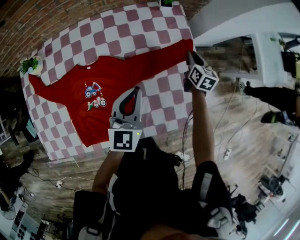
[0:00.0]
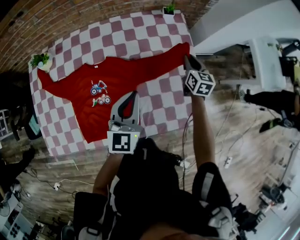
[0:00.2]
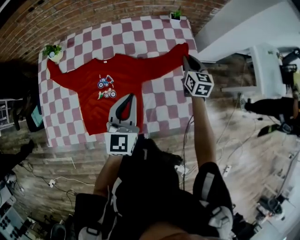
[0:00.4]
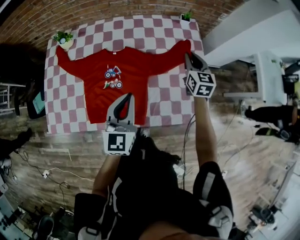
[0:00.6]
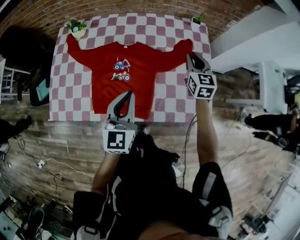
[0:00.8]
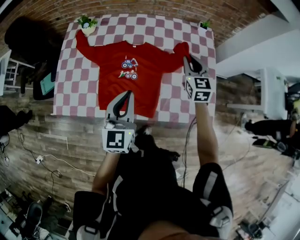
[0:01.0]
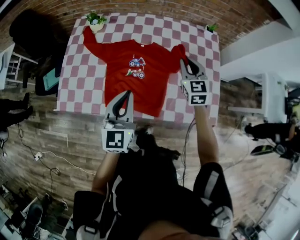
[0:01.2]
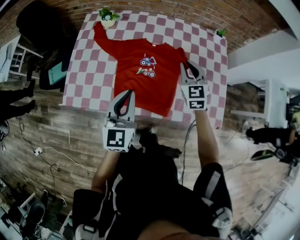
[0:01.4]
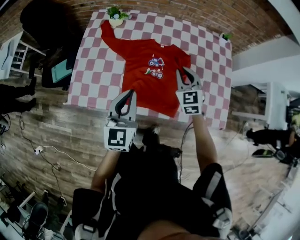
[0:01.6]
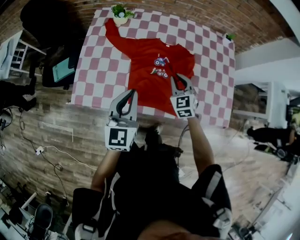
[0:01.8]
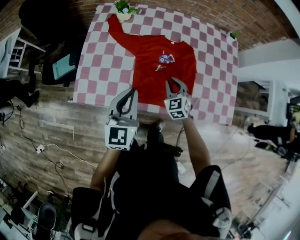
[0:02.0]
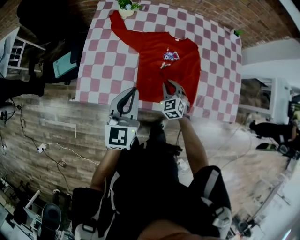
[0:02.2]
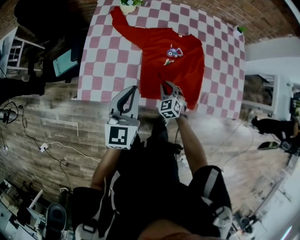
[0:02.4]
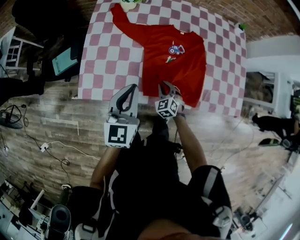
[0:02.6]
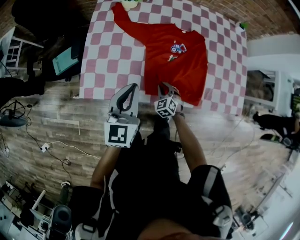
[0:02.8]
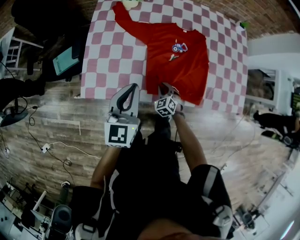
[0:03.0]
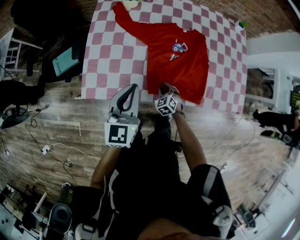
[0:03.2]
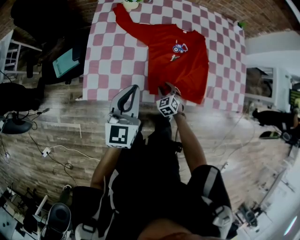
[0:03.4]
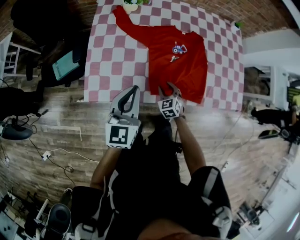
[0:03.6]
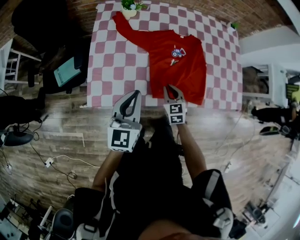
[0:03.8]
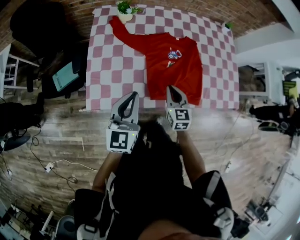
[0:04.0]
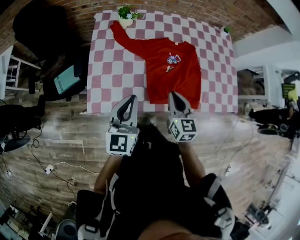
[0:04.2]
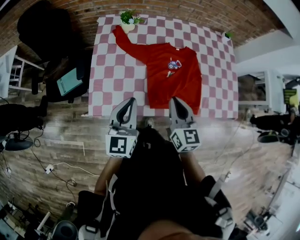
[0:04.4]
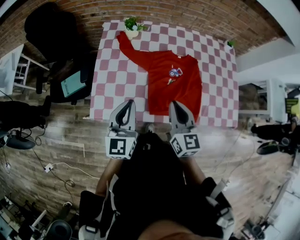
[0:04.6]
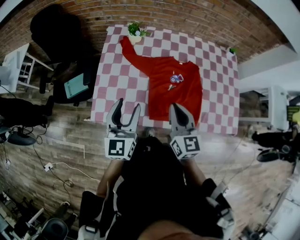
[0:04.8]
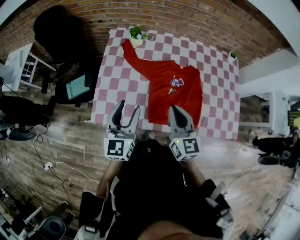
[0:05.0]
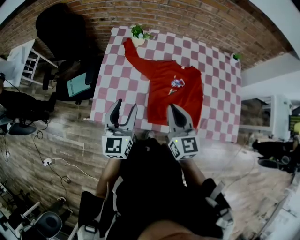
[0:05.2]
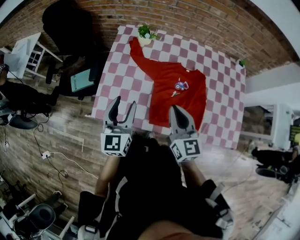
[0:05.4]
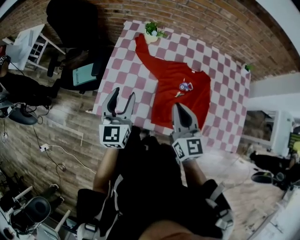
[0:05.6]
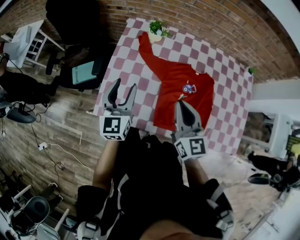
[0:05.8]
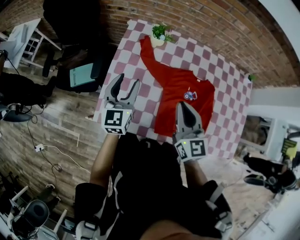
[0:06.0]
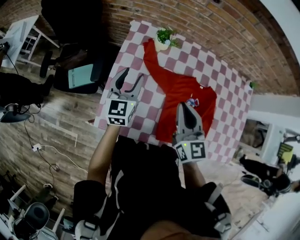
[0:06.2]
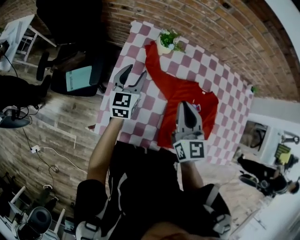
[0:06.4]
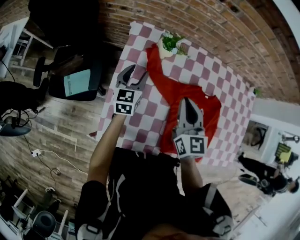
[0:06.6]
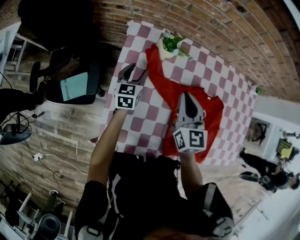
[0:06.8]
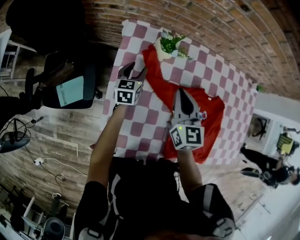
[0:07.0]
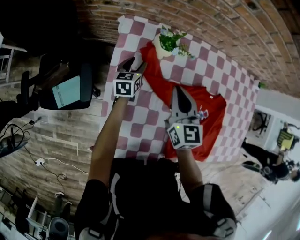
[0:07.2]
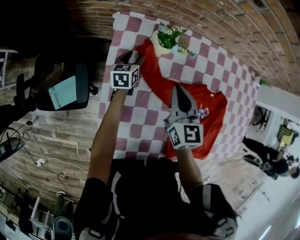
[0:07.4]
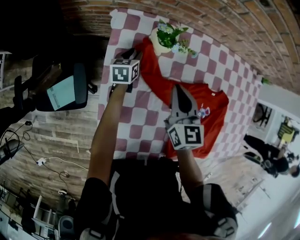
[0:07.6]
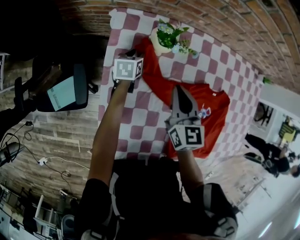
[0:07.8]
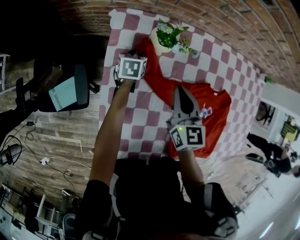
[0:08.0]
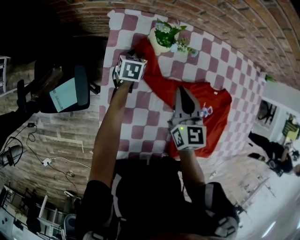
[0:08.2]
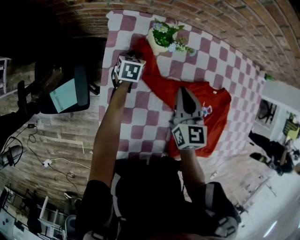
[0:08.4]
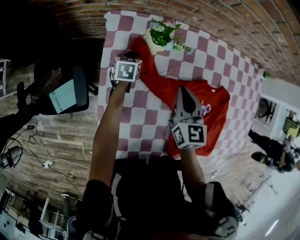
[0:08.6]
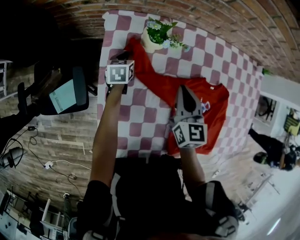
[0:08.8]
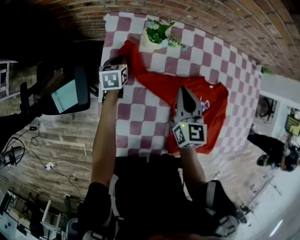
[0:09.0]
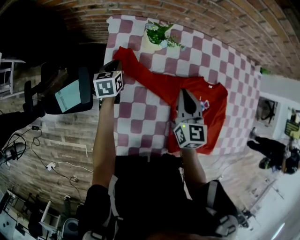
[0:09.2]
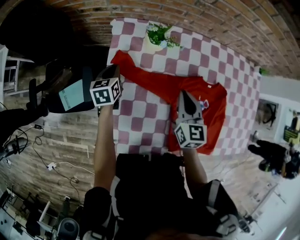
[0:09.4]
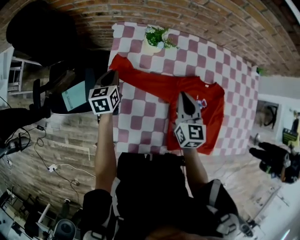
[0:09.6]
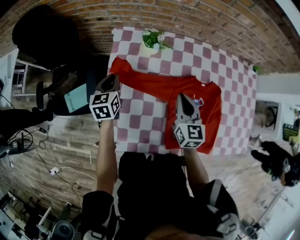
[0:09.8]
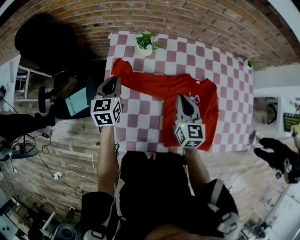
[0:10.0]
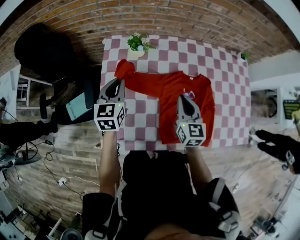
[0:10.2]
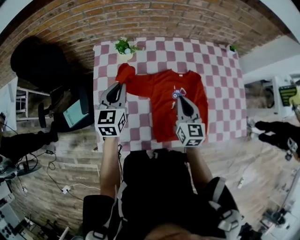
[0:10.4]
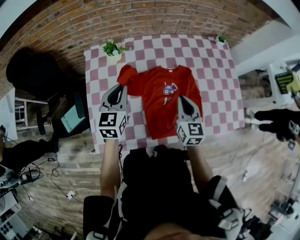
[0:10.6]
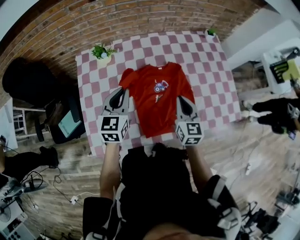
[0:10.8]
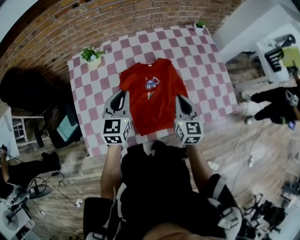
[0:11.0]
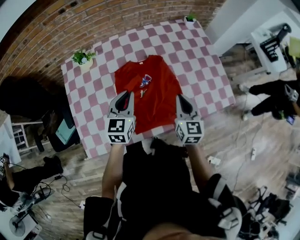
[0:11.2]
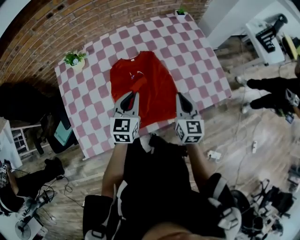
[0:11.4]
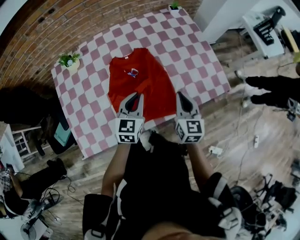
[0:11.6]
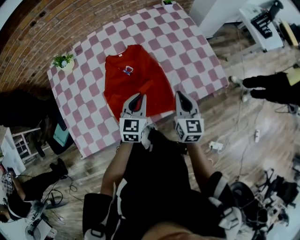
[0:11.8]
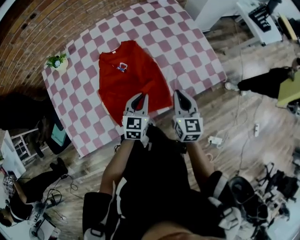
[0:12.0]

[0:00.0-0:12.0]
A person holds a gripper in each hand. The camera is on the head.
0:00.0 to 0:01.6: The pair of grippers is taken some 40 cm. The left gripper swivels some 20 degrees, while the right gripper rotates around the line of its fingers by roughly 50 degrees, counterclockwise from behind.
0:01.6 to 0:03.0: The left gripper goes approximately 15 cm to the left. The right gripper is displaced downward, to the left and backward by some 35 cm, and turns by about 30 degrees.
0:03.0 to 0:04.4: The left gripper changes place by some 5 cm, while the right gripper travels upward by some 35 cm, tilts its fingers roughly 30 degrees upward, and opens and closes again.
0:04.4 to 0:06.0: Both grippers travel together forward, about 20 cm. The left gripper opens its fingers.
0:06.0 to 0:07.6: The left gripper travels forward and downward by approximately 50 cm, swivels roughly 40 degrees, and closes its fingers, while the right gripper moves forward, downward and to the left, approximately 35 cm.
0:07.6 to 0:09.0: The left gripper ends up roughly 5 cm from where it was, and closes. Meanwhile the right gripper travels to the right by roughly 5 cm.
0:09.0 to 0:10.4: The right gripper moves to the right, backward and upward, approximately 25 cm. Meanwhile the left gripper shifts approximately 40 cm upward, backward and to the right, and swivels approximately 30 degrees.
0:10.4 to 0:12.0: The left gripper moves about 50 cm, and changes its angle by roughly 30 degrees. The right gripper ends up approximately 35 cm from where it was, and swivels roughly 20 degrees.

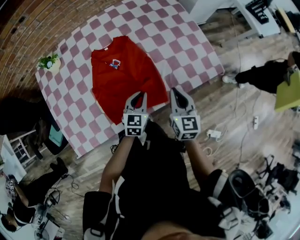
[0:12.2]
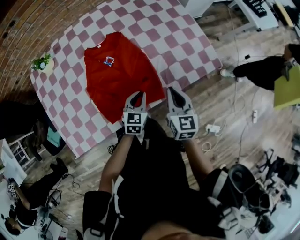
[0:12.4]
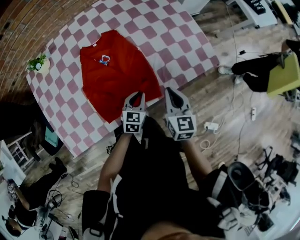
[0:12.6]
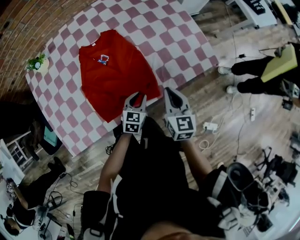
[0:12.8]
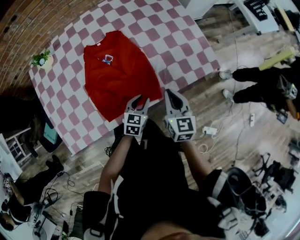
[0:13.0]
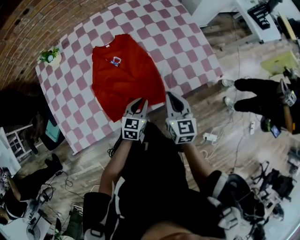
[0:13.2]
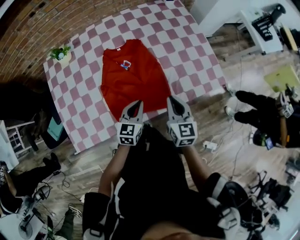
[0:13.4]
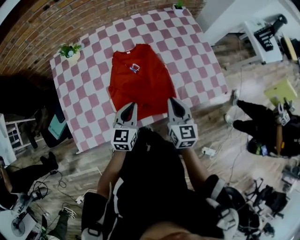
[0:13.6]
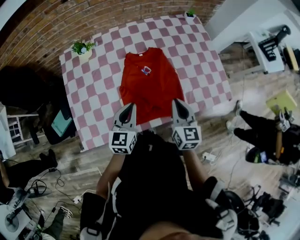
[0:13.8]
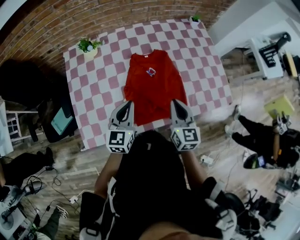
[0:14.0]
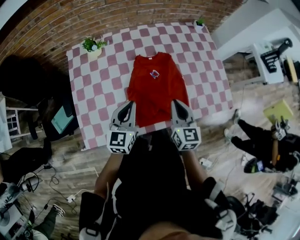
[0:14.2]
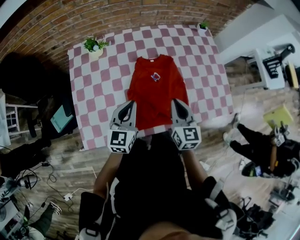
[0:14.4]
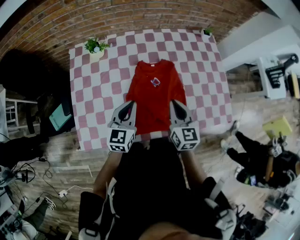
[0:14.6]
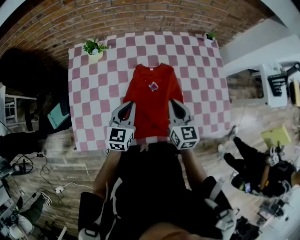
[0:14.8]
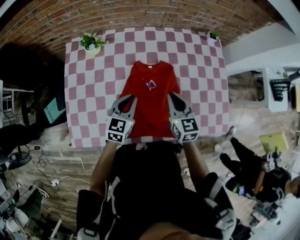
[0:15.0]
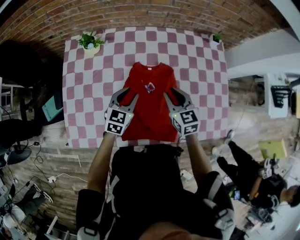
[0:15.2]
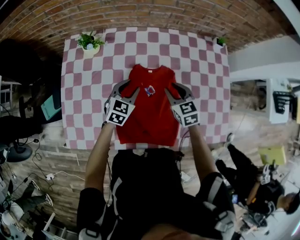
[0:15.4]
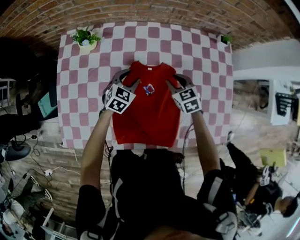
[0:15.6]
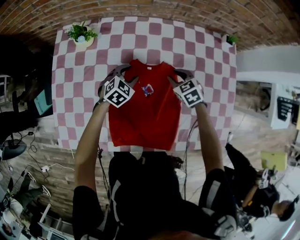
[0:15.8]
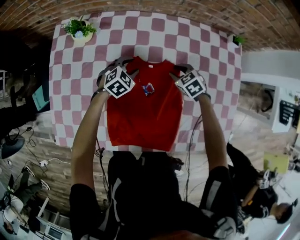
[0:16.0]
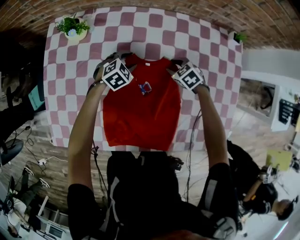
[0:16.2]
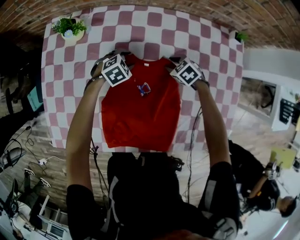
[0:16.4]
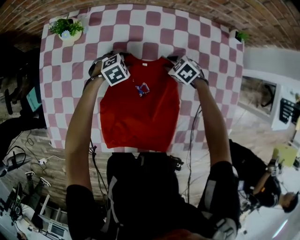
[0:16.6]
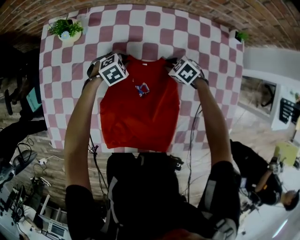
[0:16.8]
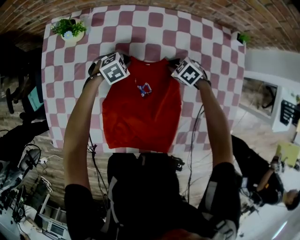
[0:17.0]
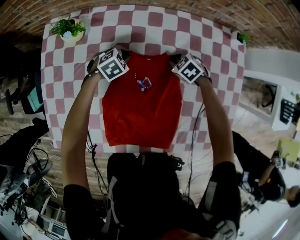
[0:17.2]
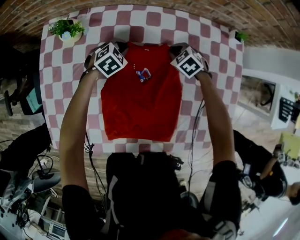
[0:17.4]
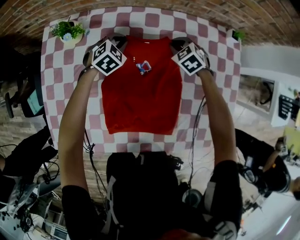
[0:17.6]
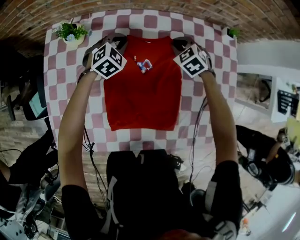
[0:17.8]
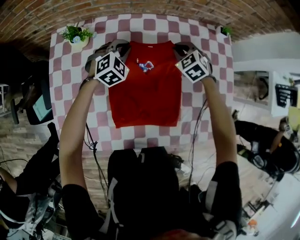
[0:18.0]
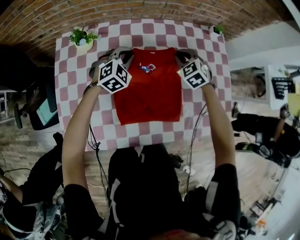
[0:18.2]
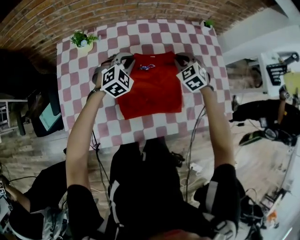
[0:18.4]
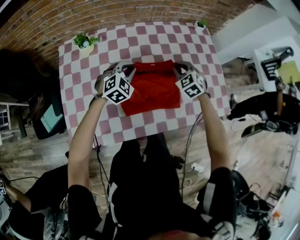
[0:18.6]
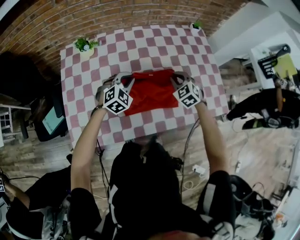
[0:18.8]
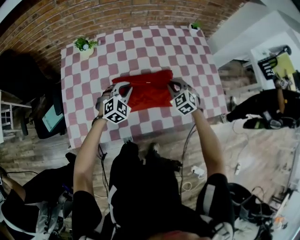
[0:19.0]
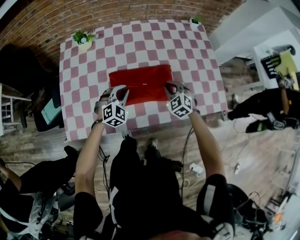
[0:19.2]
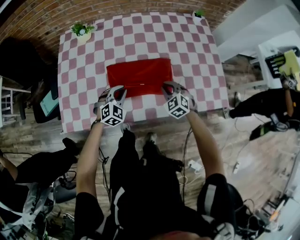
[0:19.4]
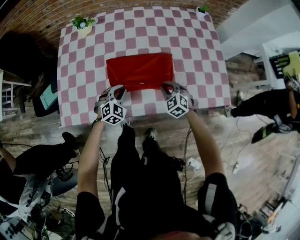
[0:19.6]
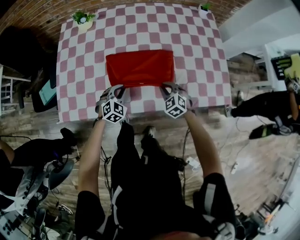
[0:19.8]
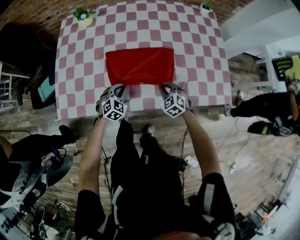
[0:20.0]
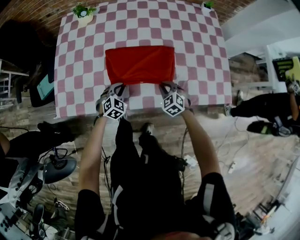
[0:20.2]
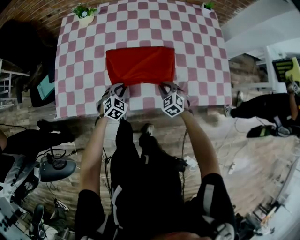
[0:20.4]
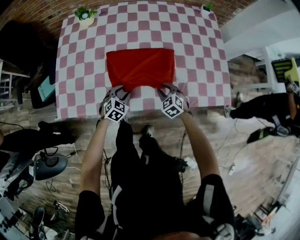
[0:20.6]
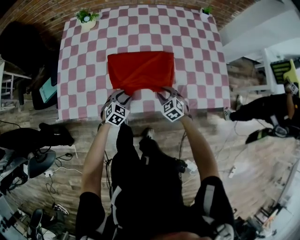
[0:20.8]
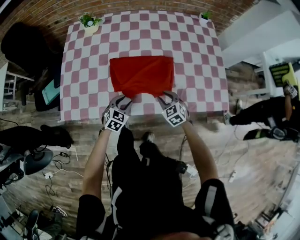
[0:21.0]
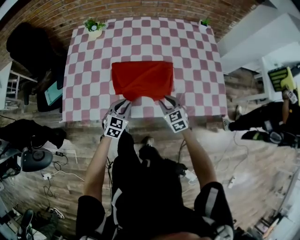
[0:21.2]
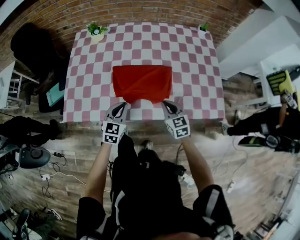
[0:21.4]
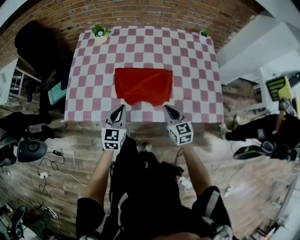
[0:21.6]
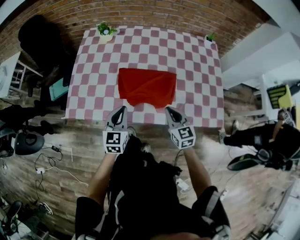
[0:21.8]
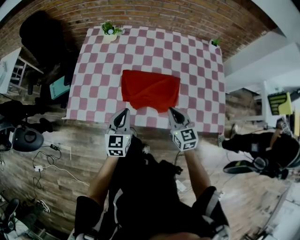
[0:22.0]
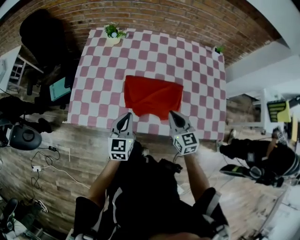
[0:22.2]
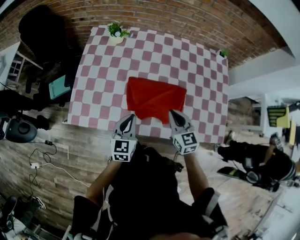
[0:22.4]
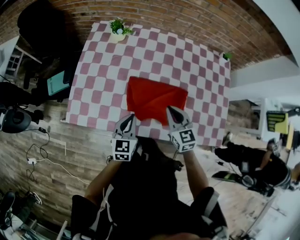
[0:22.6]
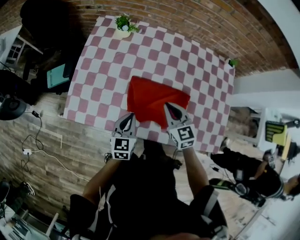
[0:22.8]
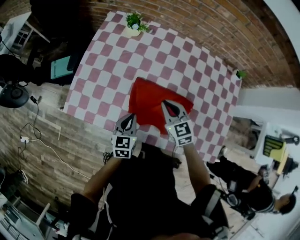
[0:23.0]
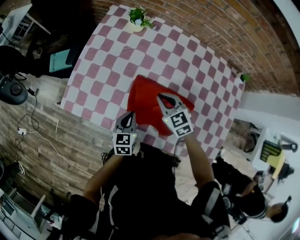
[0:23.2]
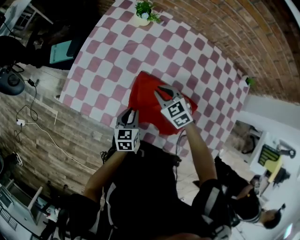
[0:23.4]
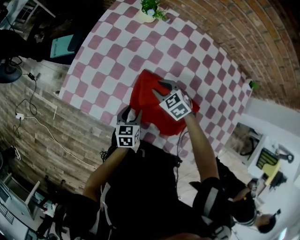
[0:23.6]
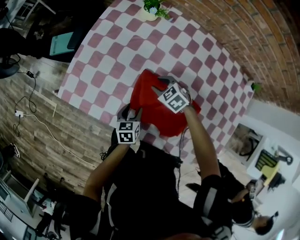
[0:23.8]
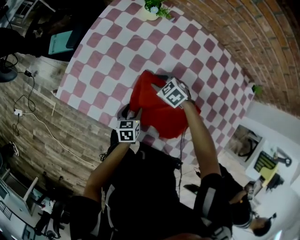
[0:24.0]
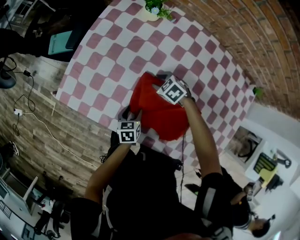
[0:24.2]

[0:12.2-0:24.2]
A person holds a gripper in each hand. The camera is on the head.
0:12.2 to 0:13.8: Both grippers move to the left and upward, roughly 20 cm.
0:13.8 to 0:15.2: Both grippers move forward, about 20 cm. The left gripper opens, while the right gripper rotates roughly 30 degrees.
0:15.2 to 0:16.6: Both grippers move downward and forward, roughly 30 cm. The left gripper tilts its fingers about 40 degrees downward. Meanwhile the right gripper angles its fingers downward, by some 40 degrees.
0:16.6 to 0:18.2: The two grippers go approximately 20 cm upward. The left gripper turns by roughly 30 degrees, and closes up. The right gripper turns by some 30 degrees, and closes.
0:18.2 to 0:19.8: The right gripper shifts approximately 35 cm backward and downward. The left gripper heads backward, covering some 35 cm.
0:19.8 to 0:21.2: The left gripper shifts roughly 10 cm backward and upward, and changes its angle by about 20 degrees. The right gripper moves upward, roughly 5 cm, and swivels approximately 20 degrees.
0:21.2 to 0:22.6: The left gripper moves upward, forward and to the left, approximately 15 cm, and swivels about 30 degrees. The right gripper moves upward, forward and to the left, approximately 20 cm, and closes up.
0:22.6 to 0:24.2: Both grippers travel together downward, roughly 25 cm. The right gripper angles its fingers downward, by about 40 degrees, and opens up. Meanwhile the left gripper turns by roughly 40 degrees, and opens.
